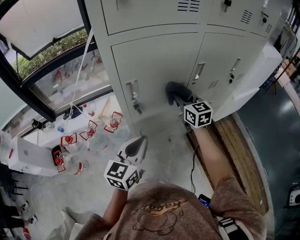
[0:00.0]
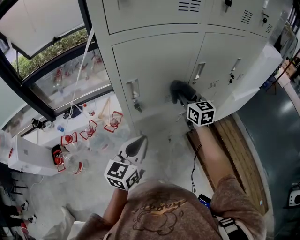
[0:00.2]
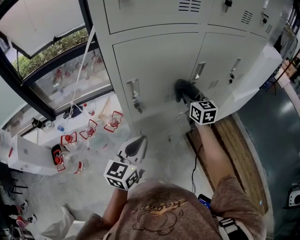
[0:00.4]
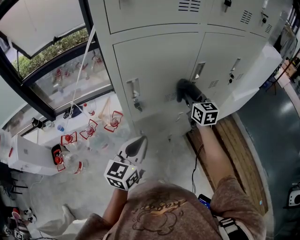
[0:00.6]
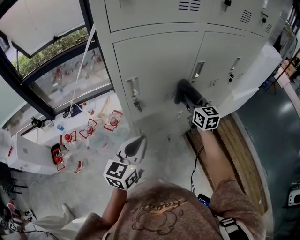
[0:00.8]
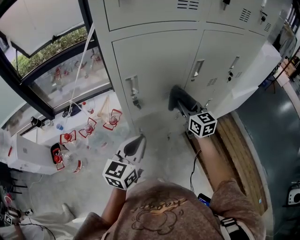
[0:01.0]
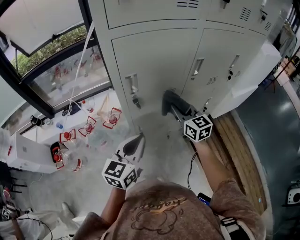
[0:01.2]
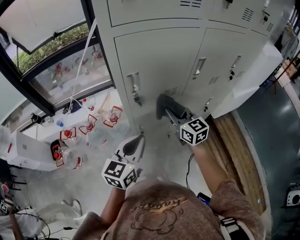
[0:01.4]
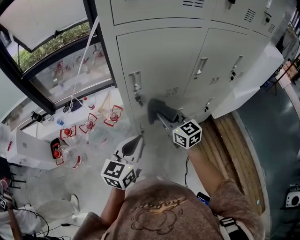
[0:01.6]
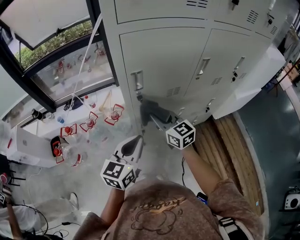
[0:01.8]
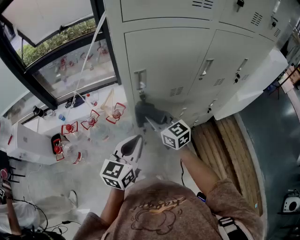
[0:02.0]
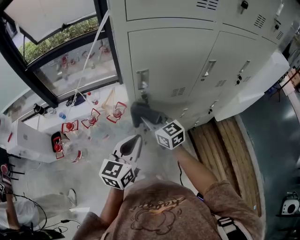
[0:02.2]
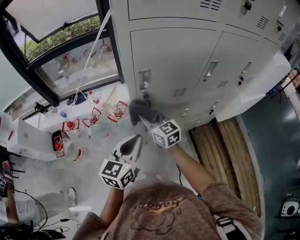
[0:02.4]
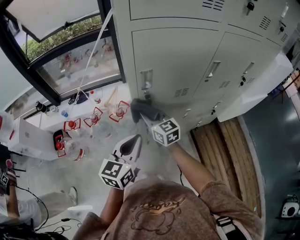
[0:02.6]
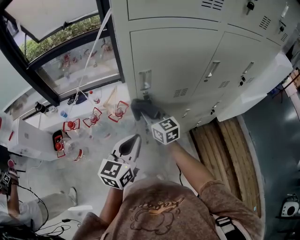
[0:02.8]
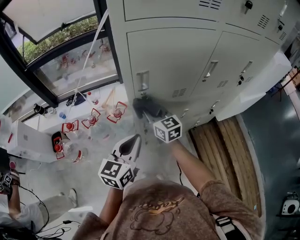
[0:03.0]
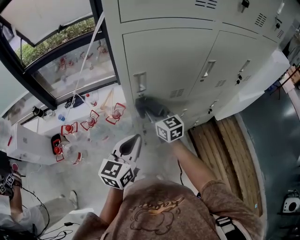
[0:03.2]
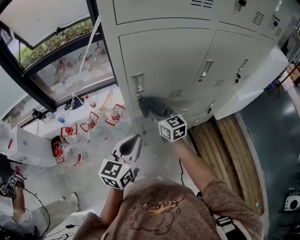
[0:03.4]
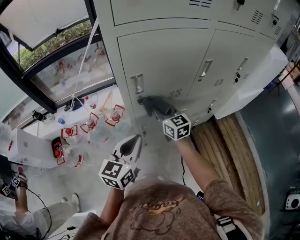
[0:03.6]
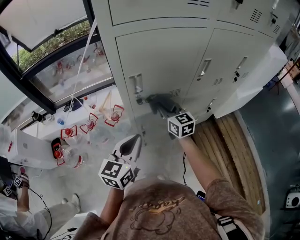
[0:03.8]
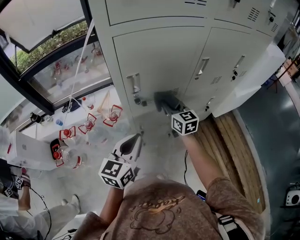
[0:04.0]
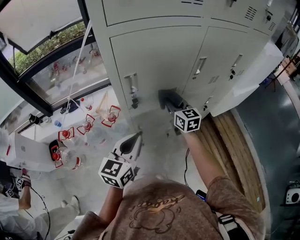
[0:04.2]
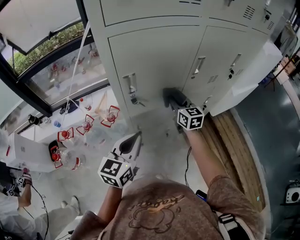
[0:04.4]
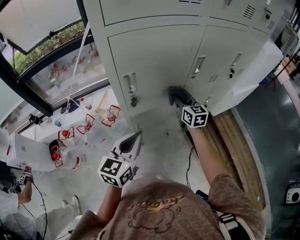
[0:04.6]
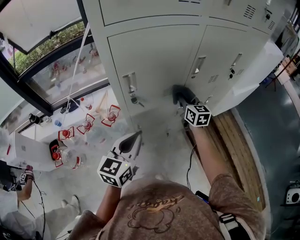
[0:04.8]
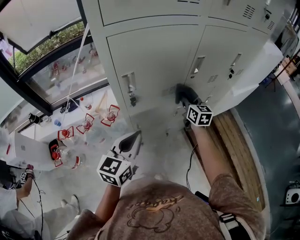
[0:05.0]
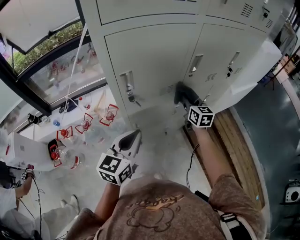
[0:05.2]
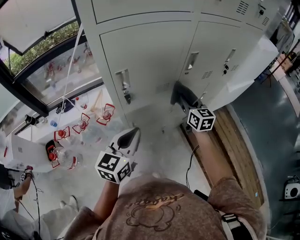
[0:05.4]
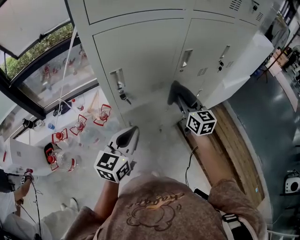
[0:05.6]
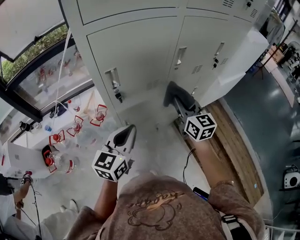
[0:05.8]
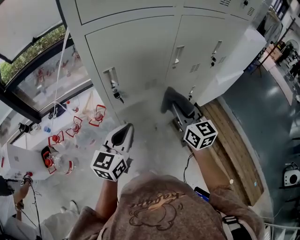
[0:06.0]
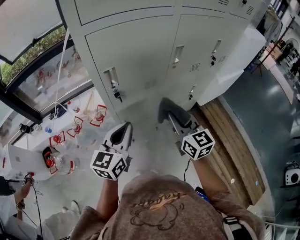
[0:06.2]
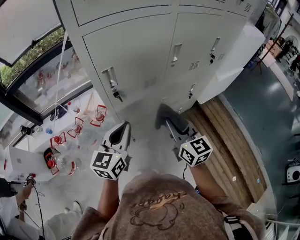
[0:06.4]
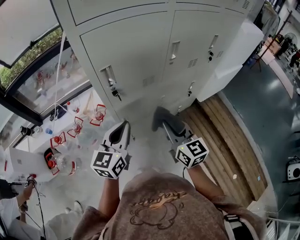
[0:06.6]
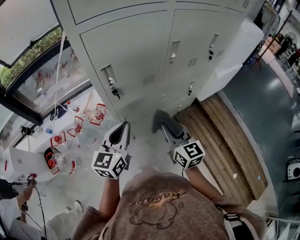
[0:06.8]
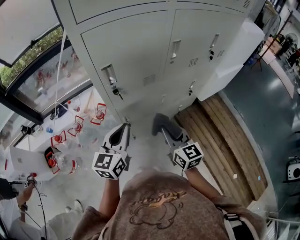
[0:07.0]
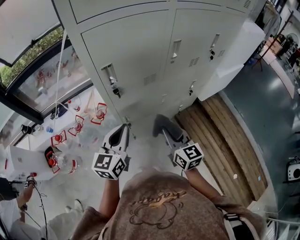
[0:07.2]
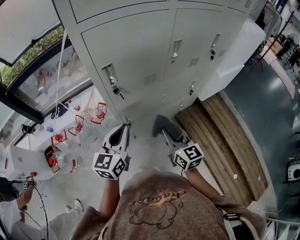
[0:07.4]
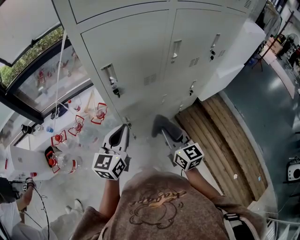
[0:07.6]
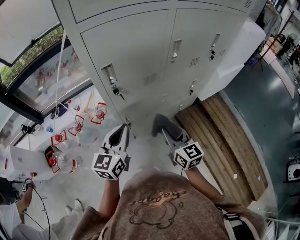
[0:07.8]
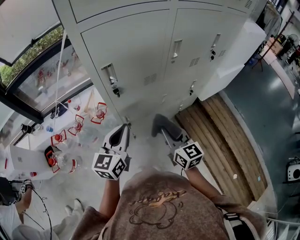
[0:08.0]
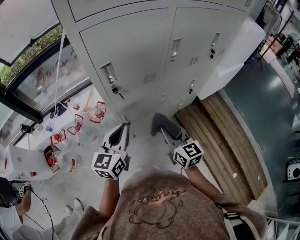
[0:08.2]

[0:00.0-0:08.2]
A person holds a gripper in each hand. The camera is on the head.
0:00.0 to 0:01.6: The right gripper goes roughly 15 cm backward and to the left.
0:01.6 to 0:03.2: The right gripper goes some 10 cm to the left and forward.
0:03.2 to 0:05.0: The right gripper moves to the right, roughly 25 cm, and rotates roughly 30 degrees.
0:05.0 to 0:06.6: The right gripper heads backward, covering about 25 cm.
0:06.6 to 0:08.2: The right gripper is displaced downward by about 5 cm.

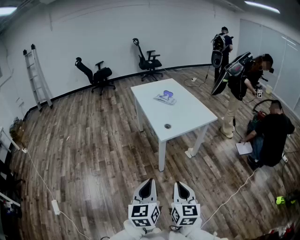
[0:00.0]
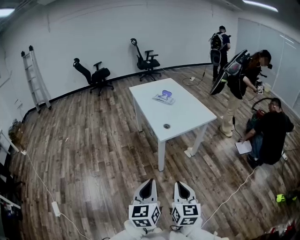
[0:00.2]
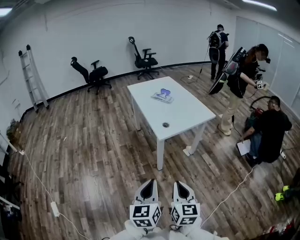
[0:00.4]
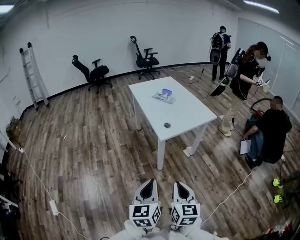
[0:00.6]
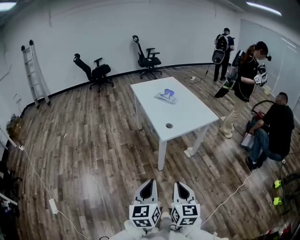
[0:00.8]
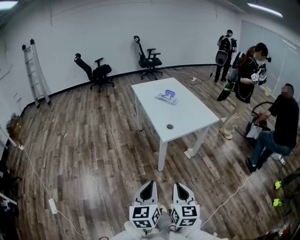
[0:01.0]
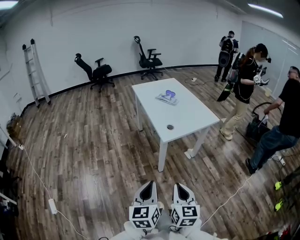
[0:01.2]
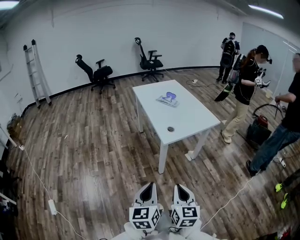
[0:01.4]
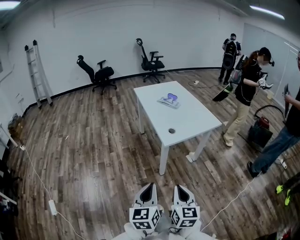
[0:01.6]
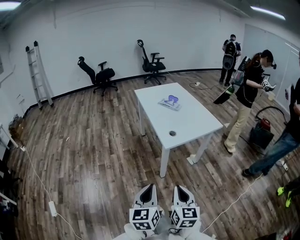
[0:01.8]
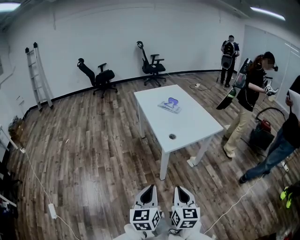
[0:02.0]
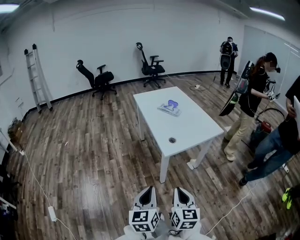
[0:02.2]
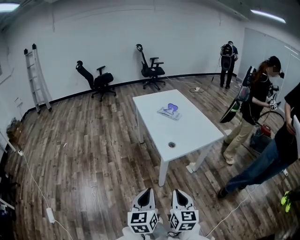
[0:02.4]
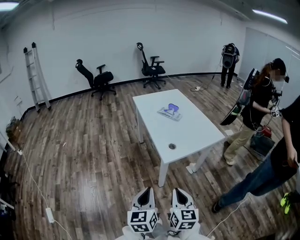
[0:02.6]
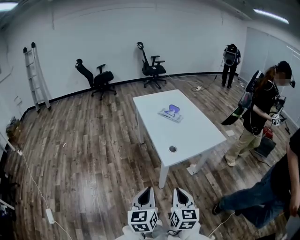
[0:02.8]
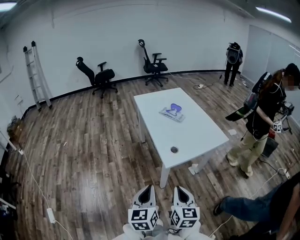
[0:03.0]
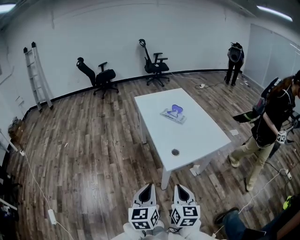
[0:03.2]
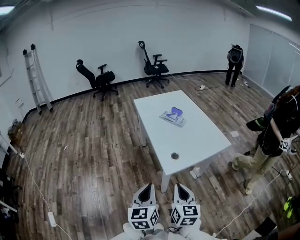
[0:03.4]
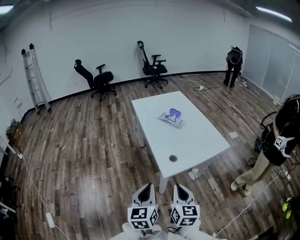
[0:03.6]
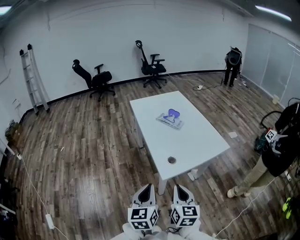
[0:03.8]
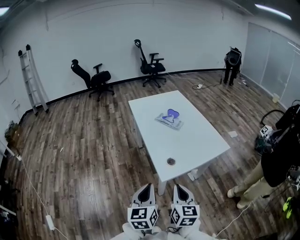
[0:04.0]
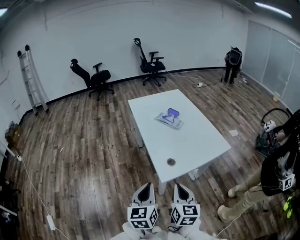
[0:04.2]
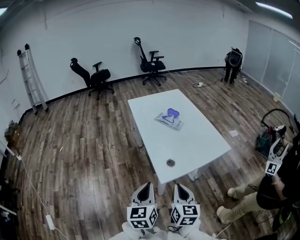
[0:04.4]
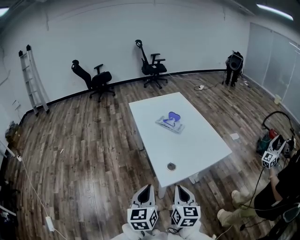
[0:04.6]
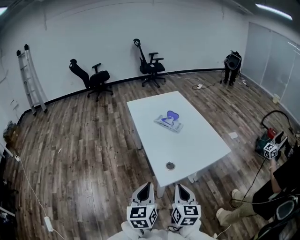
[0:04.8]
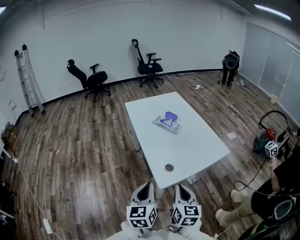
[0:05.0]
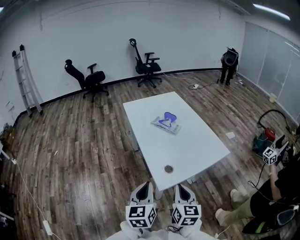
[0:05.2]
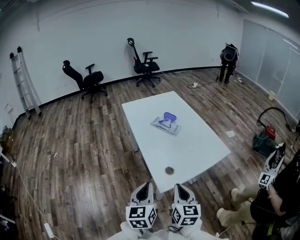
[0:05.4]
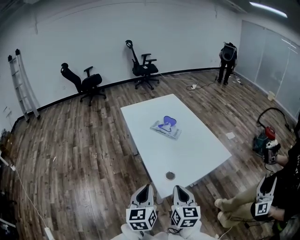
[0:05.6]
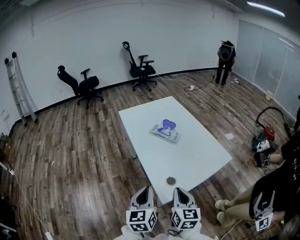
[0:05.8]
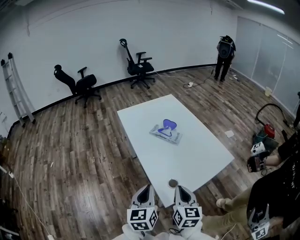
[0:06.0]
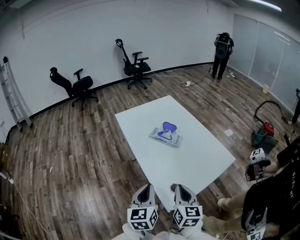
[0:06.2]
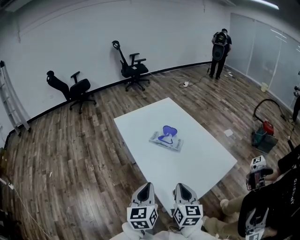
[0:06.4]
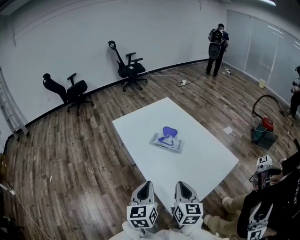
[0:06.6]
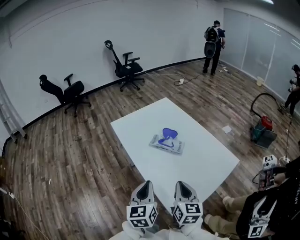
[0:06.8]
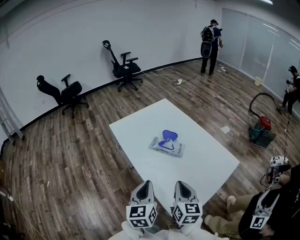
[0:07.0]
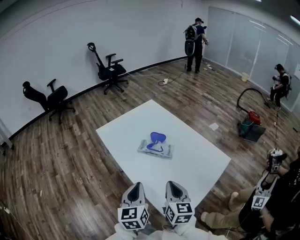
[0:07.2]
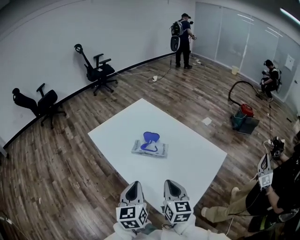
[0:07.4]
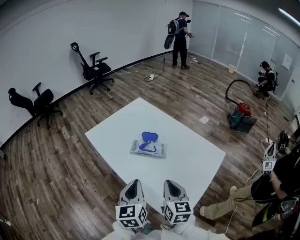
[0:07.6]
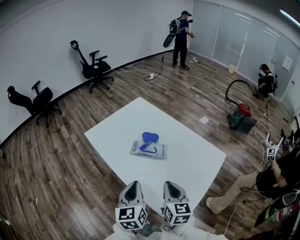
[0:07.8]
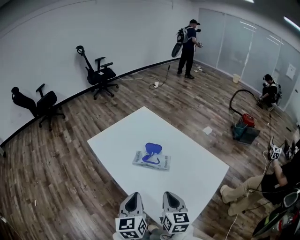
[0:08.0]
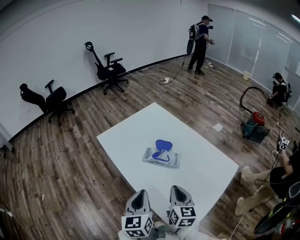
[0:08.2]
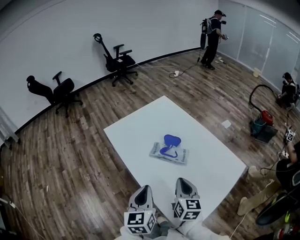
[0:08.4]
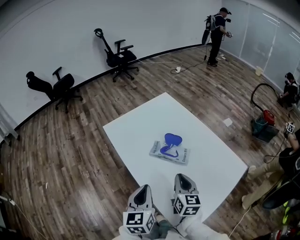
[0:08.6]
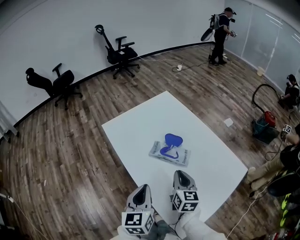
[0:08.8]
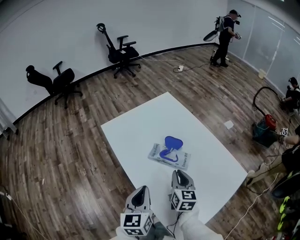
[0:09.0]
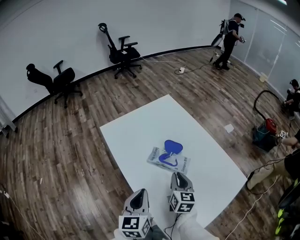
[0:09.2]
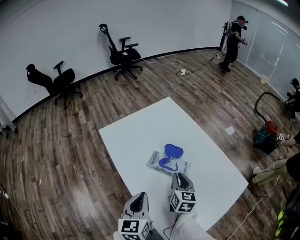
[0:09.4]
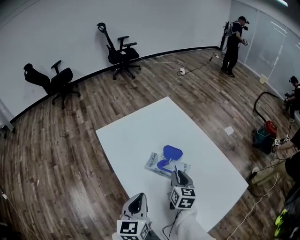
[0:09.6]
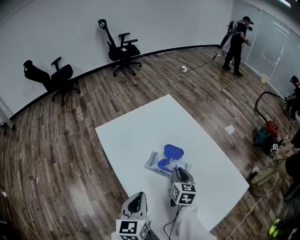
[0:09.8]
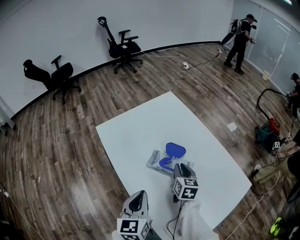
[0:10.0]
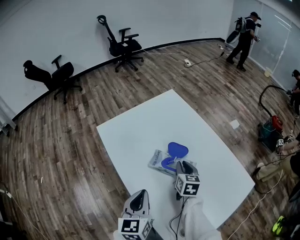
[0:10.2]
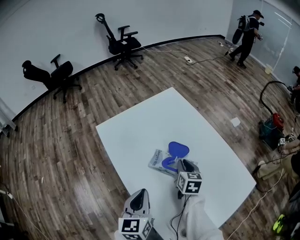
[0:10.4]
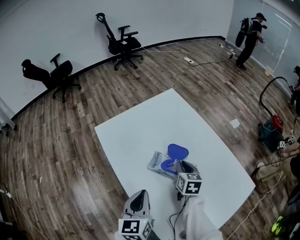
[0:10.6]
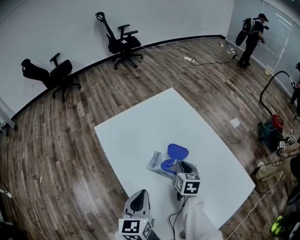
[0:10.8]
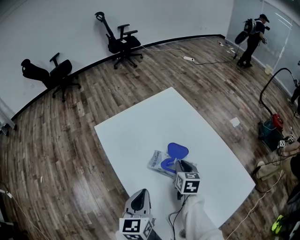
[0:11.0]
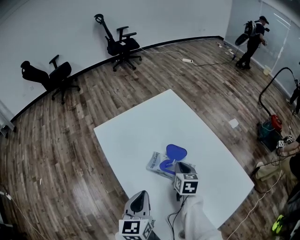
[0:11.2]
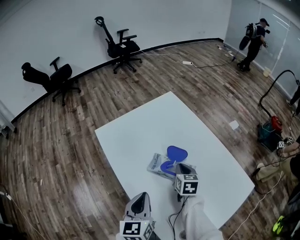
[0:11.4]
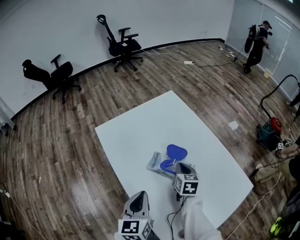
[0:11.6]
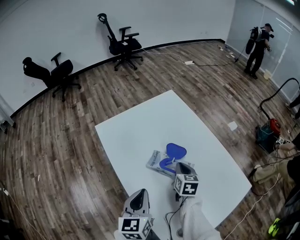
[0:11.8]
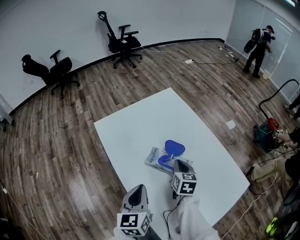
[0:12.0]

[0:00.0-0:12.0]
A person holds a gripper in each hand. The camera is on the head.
0:00.0 to 0:01.6: The grippers make only small movements.
0:01.6 to 0:03.0: Both grippers move forward, roughly 15 cm.
0:03.0 to 0:04.4: Both grippers travel together forward, approximately 10 cm.
0:04.4 to 0:06.0: The two grippers go some 15 cm forward.
0:06.0 to 0:07.6: The grippers both shift forward by roughly 15 cm.
0:07.6 to 0:09.0: The right gripper heads forward and downward, covering some 15 cm; the left gripper moves forward, about 5 cm.
0:09.0 to 0:10.4: The right gripper moves forward and downward, about 15 cm. Meanwhile the left gripper goes about 5 cm forward.
0:10.4 to 0:12.0: The grippers make only small movements.

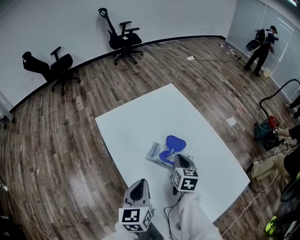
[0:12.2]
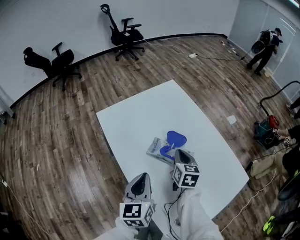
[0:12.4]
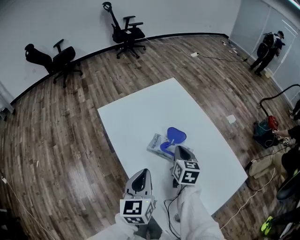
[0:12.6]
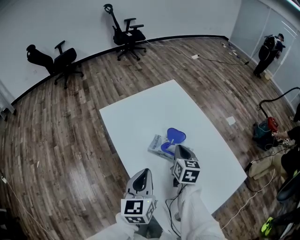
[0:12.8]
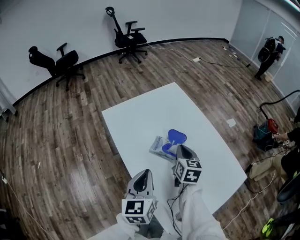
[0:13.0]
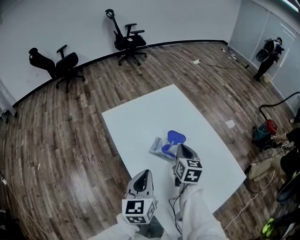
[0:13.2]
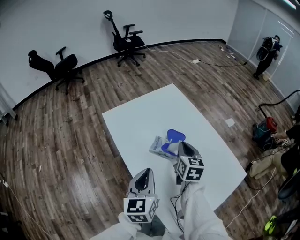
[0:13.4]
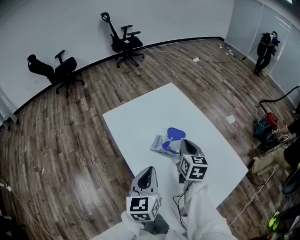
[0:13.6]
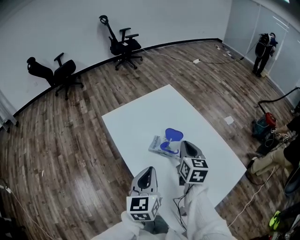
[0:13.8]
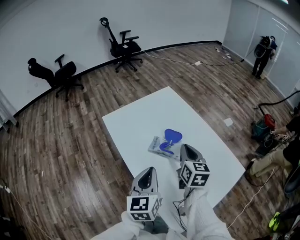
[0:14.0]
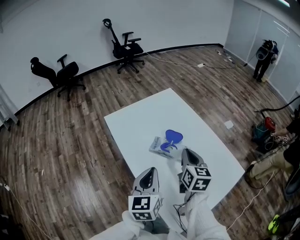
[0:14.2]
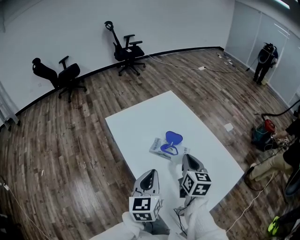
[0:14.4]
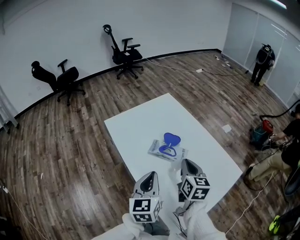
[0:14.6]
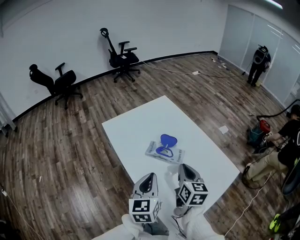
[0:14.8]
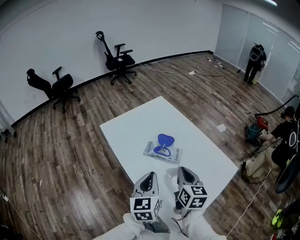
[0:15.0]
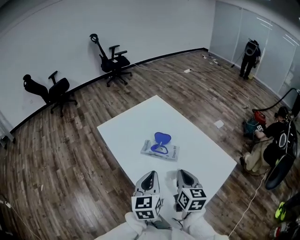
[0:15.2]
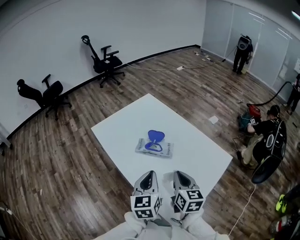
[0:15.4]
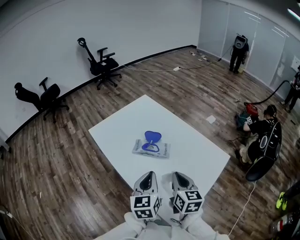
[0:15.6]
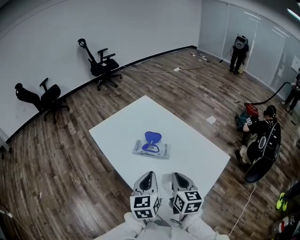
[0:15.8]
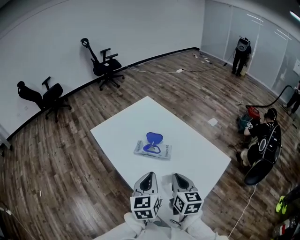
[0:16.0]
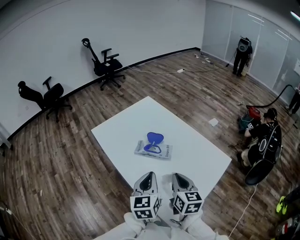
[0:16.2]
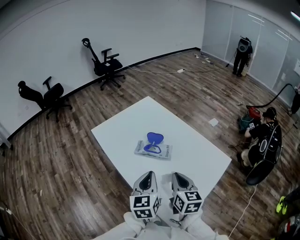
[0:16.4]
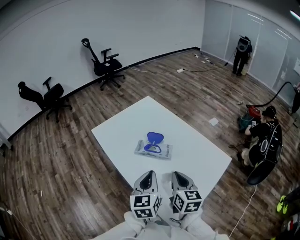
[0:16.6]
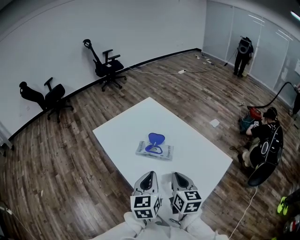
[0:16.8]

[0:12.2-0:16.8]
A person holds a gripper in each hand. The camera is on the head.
0:12.2 to 0:13.8: The left gripper travels upward by about 5 cm. Meanwhile the right gripper moves upward, approximately 10 cm.
0:13.8 to 0:15.2: The right gripper goes some 15 cm backward. The left gripper shifts by roughly 5 cm.
0:15.2 to 0:16.8: The grippers stay close to where they were, moving slightly.
